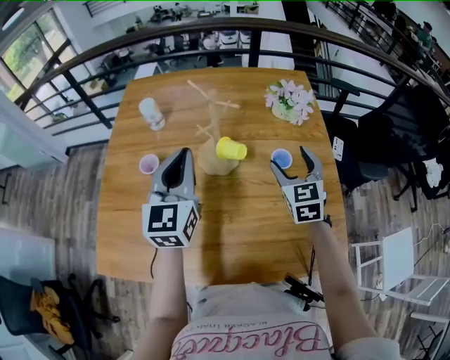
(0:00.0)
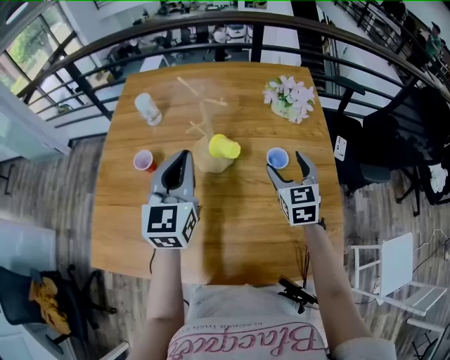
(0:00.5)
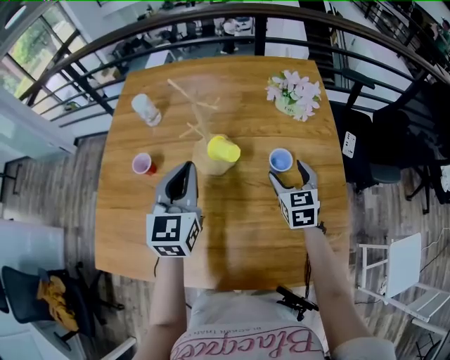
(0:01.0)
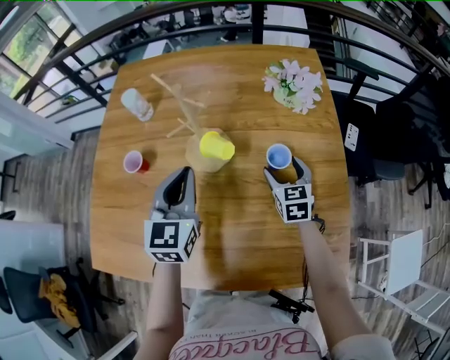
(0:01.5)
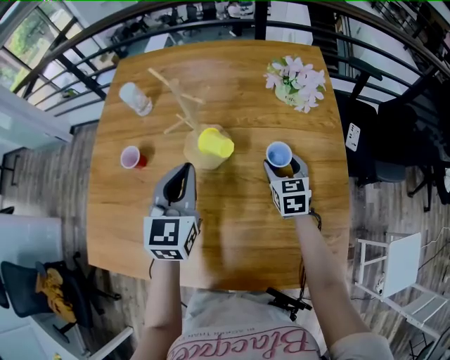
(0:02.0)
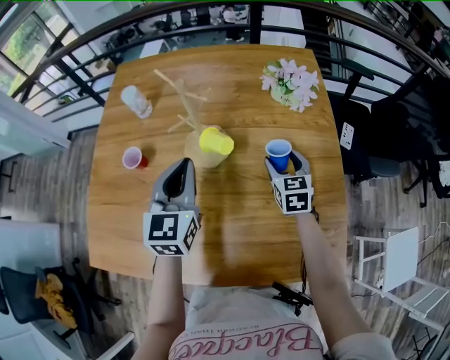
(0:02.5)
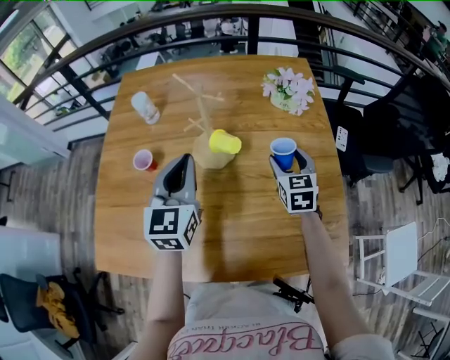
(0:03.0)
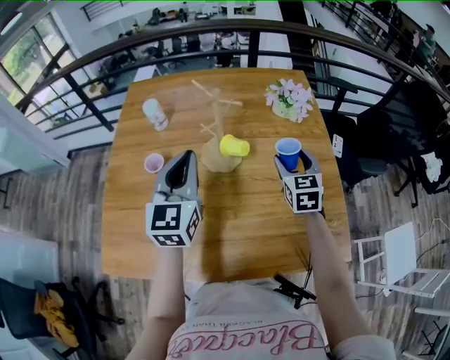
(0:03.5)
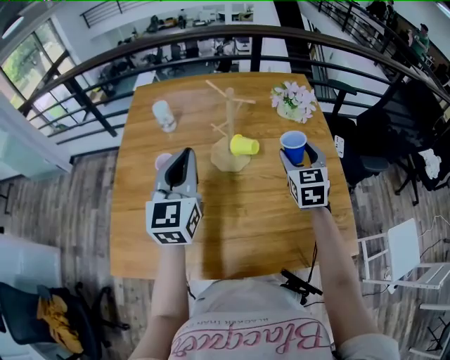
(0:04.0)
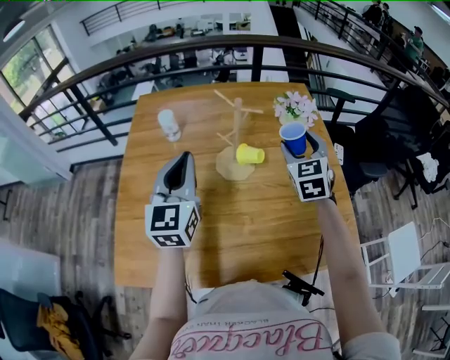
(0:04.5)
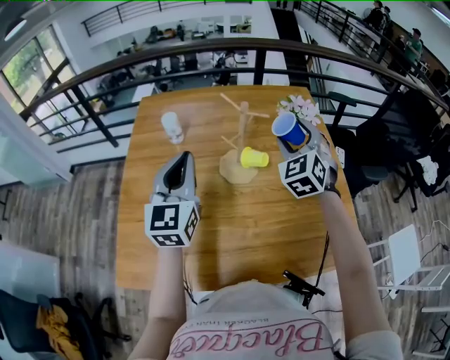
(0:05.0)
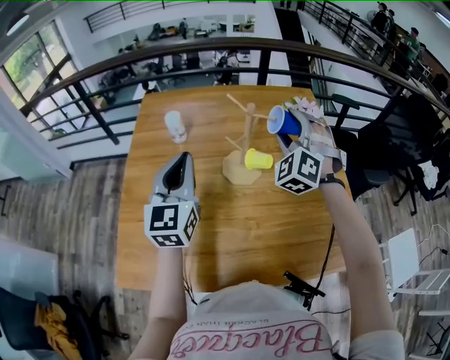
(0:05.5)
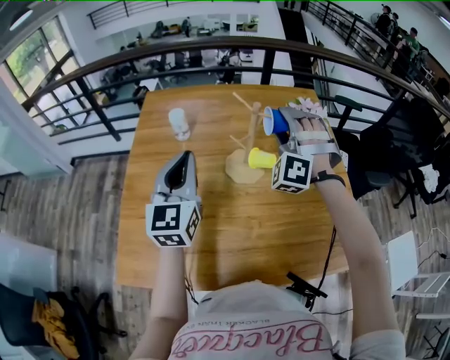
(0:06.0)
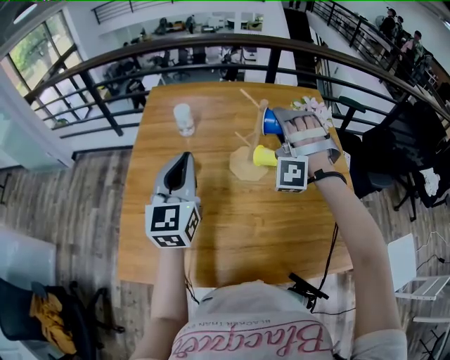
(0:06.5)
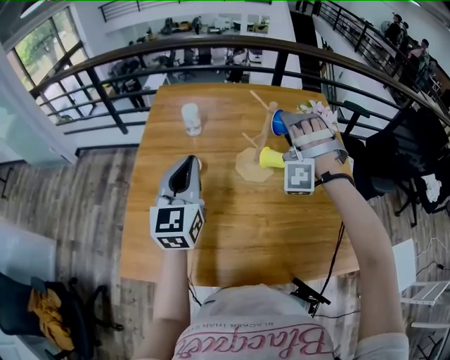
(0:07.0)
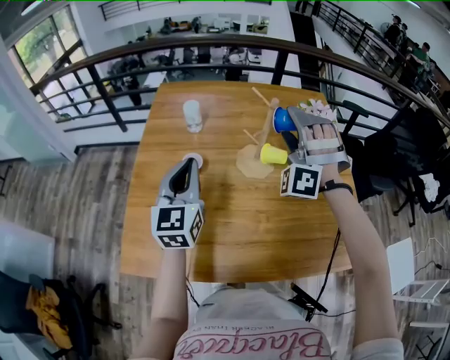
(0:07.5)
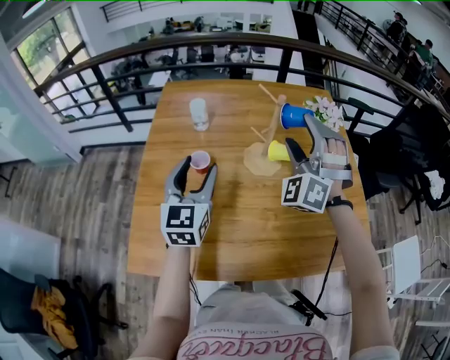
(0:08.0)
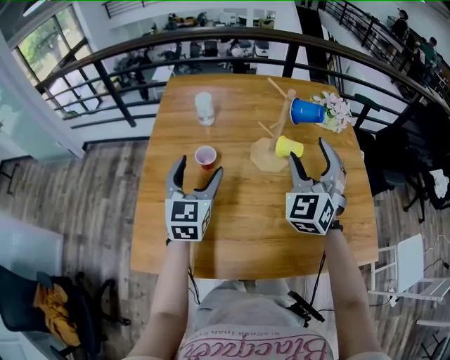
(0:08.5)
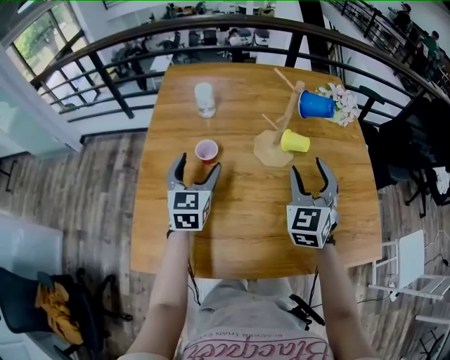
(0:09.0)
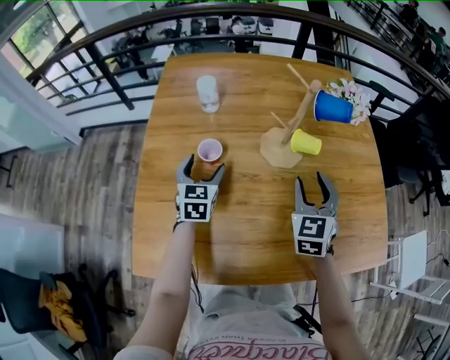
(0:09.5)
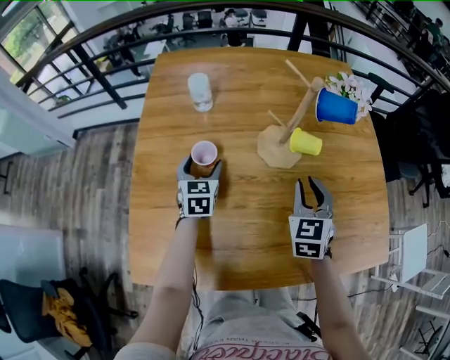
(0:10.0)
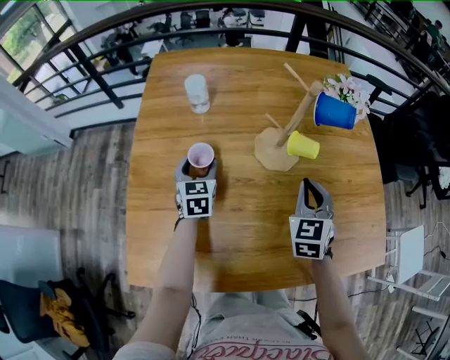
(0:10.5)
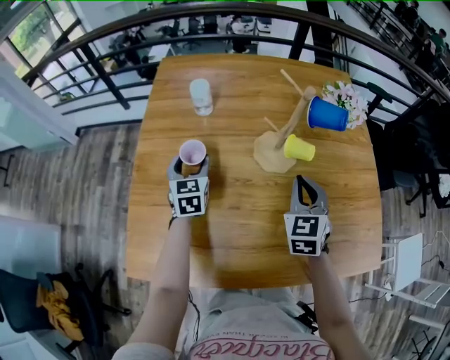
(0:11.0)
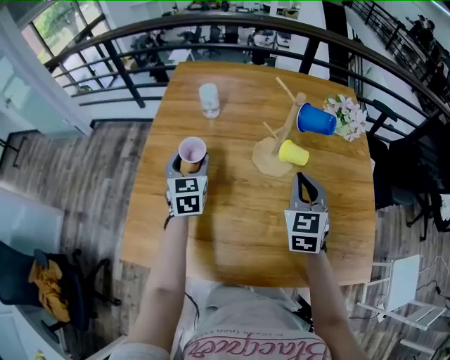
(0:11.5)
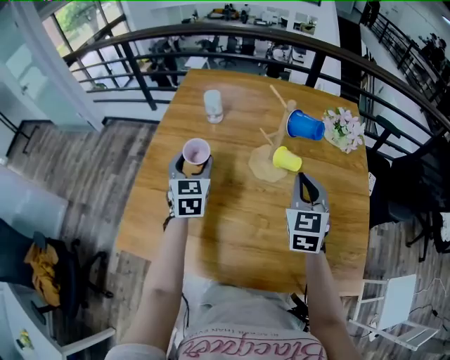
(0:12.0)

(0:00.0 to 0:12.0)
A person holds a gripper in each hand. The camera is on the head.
0:00.0 - 0:02.0: The left gripper shifts about 10 cm downward and to the right; the right gripper moves downward, some 15 cm.
0:02.0 - 0:04.0: The left gripper heads upward and to the left, covering some 15 cm. The right gripper travels upward by about 20 cm.
0:04.0 - 0:06.0: The left gripper heads to the left, covering about 5 cm; the right gripper moves to the left and upward, about 15 cm, and twists some 80 degrees counterclockwise, seen from behind.
0:06.0 - 0:08.0: The right gripper moves backward, about 10 cm. The left gripper shifts roughly 5 cm downward, and opens.
0:08.0 - 0:10.0: The right gripper goes about 20 cm downward, rolls clockwise, seen from behind, by roughly 60 degrees, and closes its fingers; the left gripper travels downward and forward by roughly 25 cm, and rotates approximately 20 degrees.
0:10.0 - 0:12.0: The left gripper moves upward and backward, approximately 15 cm, while the right gripper is displaced upward by roughly 10 cm.

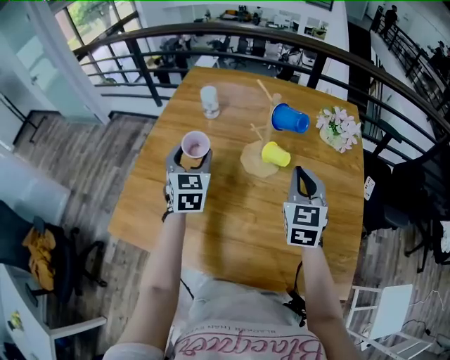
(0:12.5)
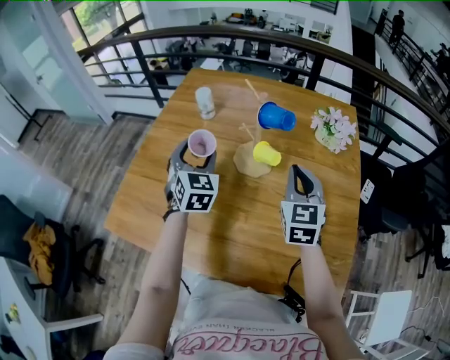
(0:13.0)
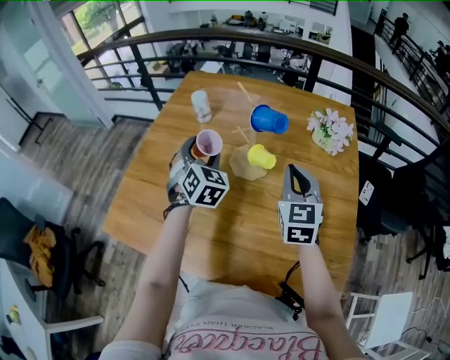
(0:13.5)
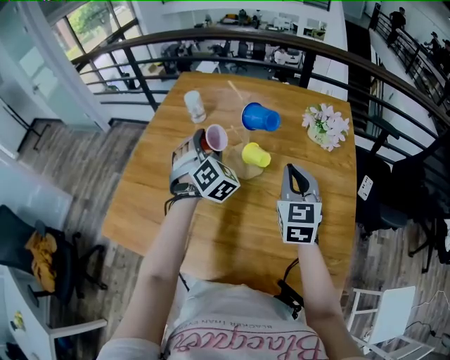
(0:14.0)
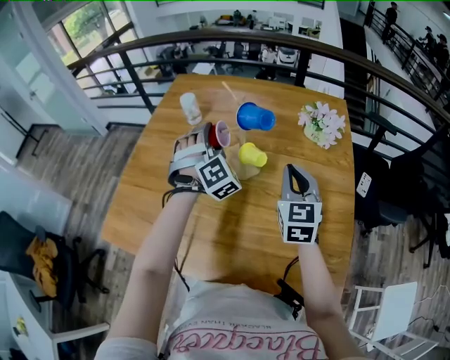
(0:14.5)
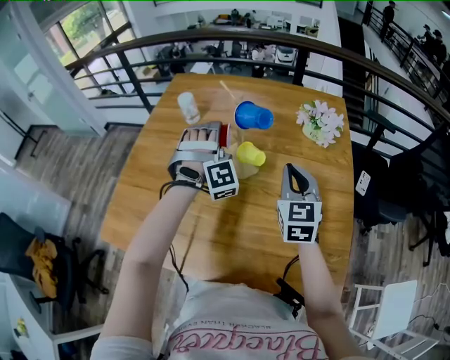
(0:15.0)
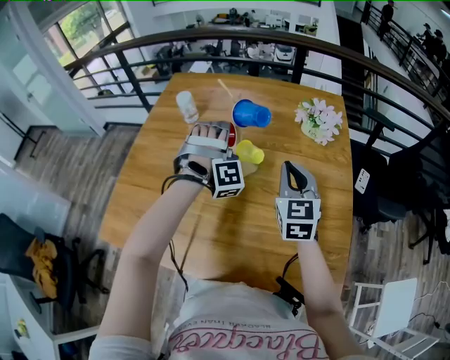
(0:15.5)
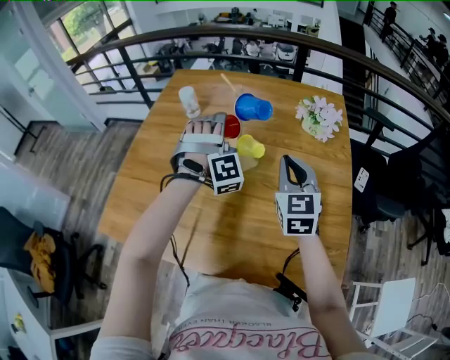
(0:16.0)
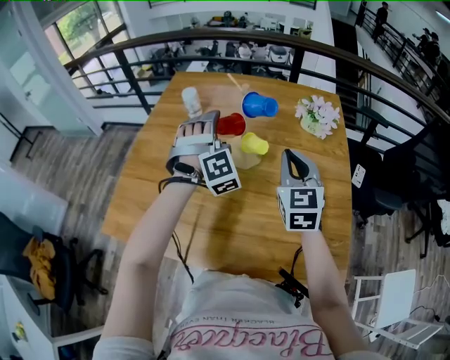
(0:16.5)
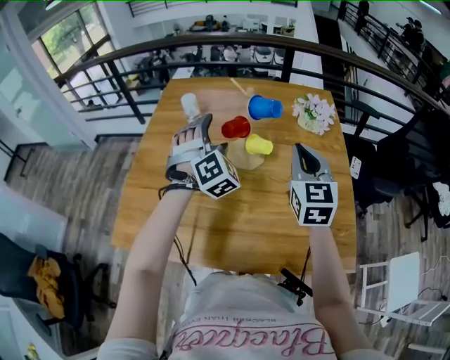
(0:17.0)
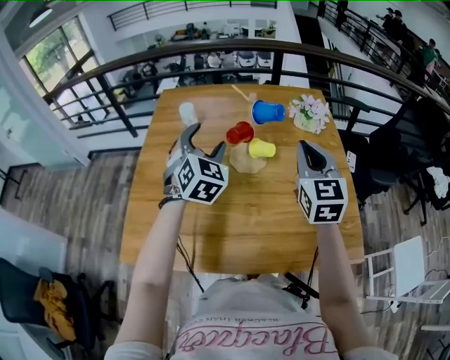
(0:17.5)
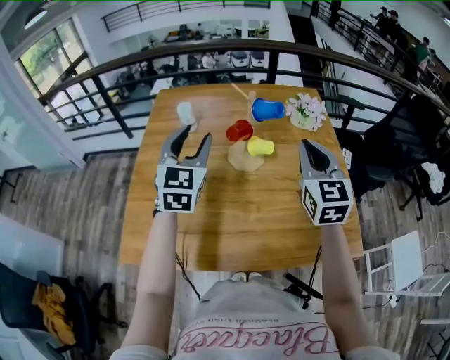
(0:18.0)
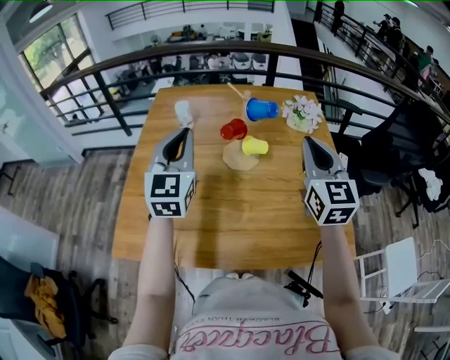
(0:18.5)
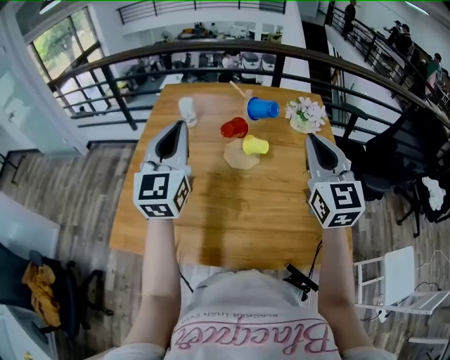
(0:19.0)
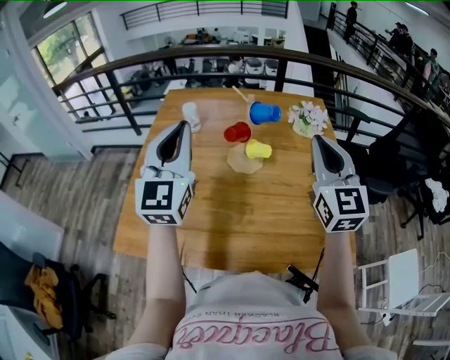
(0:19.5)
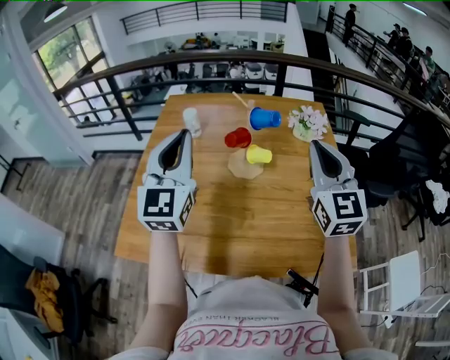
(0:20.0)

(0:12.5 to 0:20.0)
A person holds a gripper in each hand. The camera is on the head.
0:12.5 - 0:14.5: The left gripper travels to the right by approximately 15 cm, and rotates around the line of its fingers by roughly 60 degrees, clockwise from behind, while the right gripper goes some 5 cm to the right.
0:14.5 - 0:16.5: The right gripper moves roughly 5 cm.
0:16.5 - 0:18.0: The right gripper heads upward, covering roughly 5 cm. Meanwhile the left gripper heads upward, to the left and backward, covering about 15 cm, rotates around the line of its fingers by approximately 60 degrees, counterclockwise from behind, and closes up.
0:18.0 - 0:20.0: The left gripper goes approximately 10 cm upward and backward, and closes up. The right gripper heads upward, covering approximately 5 cm.

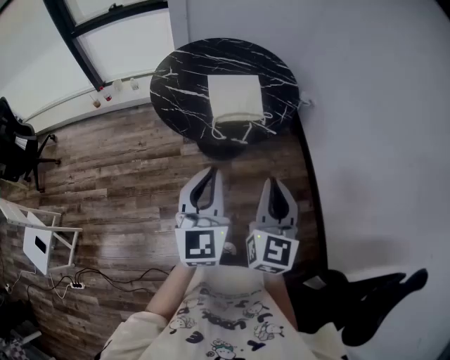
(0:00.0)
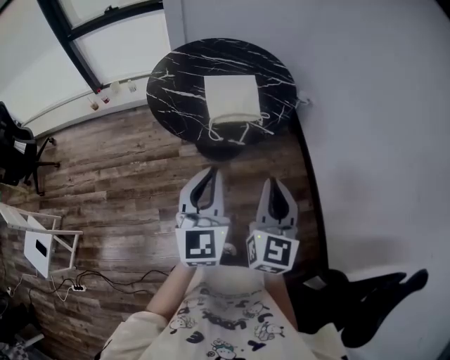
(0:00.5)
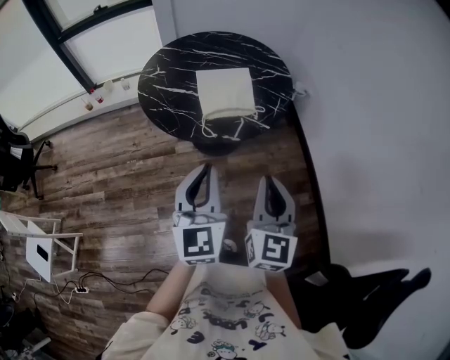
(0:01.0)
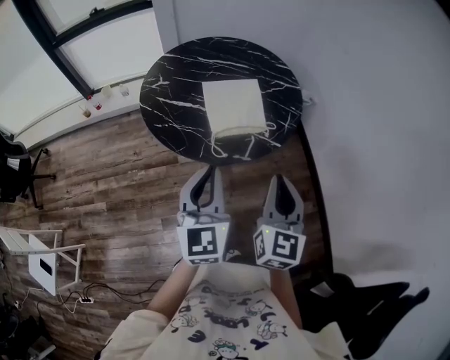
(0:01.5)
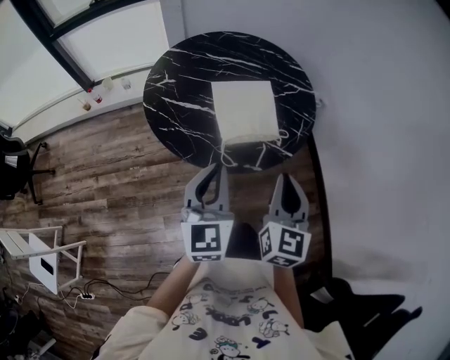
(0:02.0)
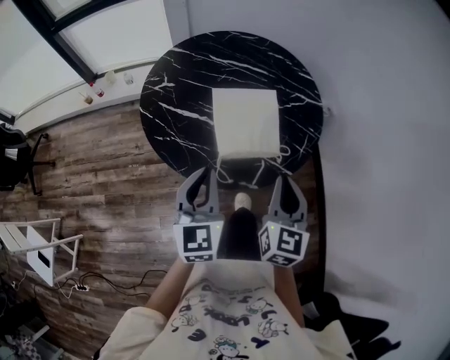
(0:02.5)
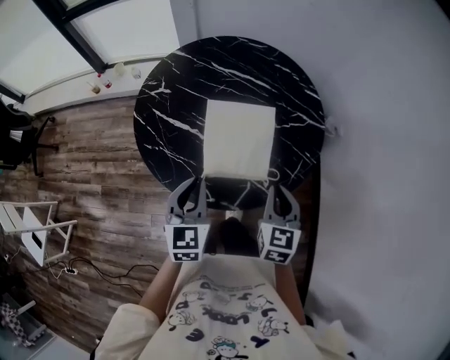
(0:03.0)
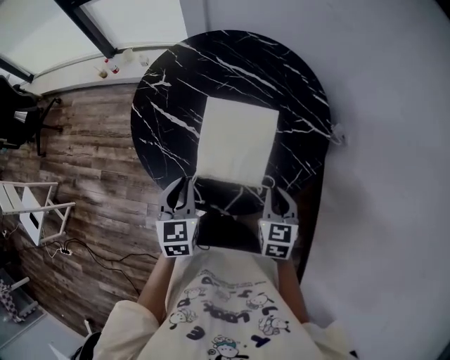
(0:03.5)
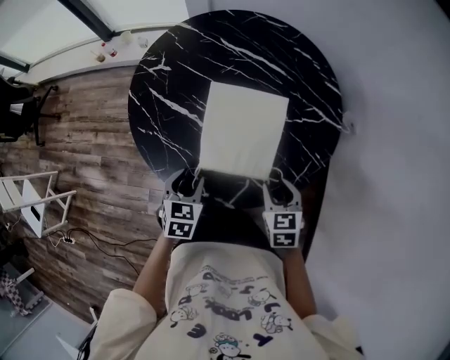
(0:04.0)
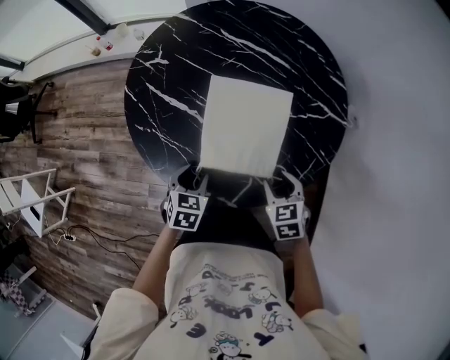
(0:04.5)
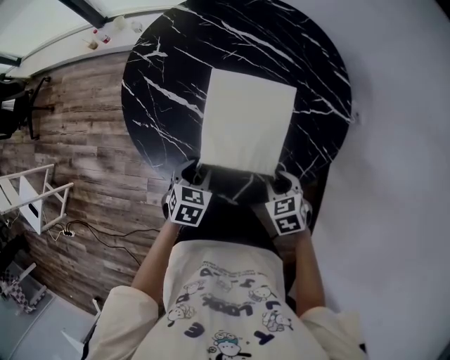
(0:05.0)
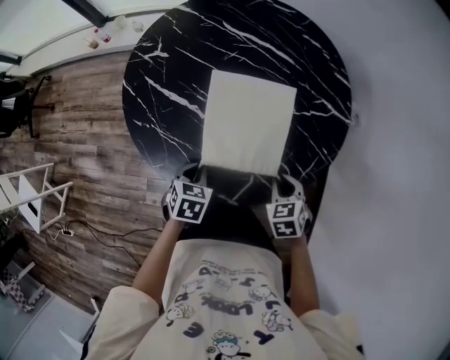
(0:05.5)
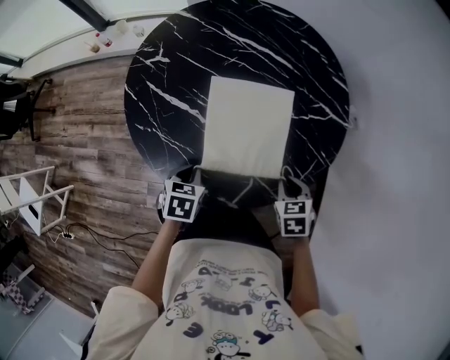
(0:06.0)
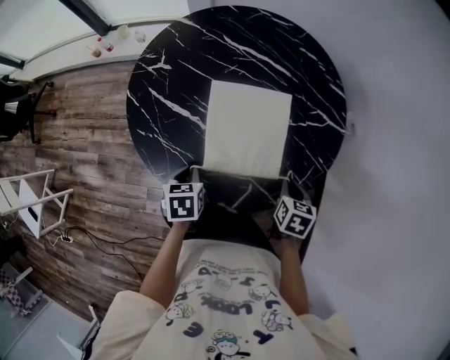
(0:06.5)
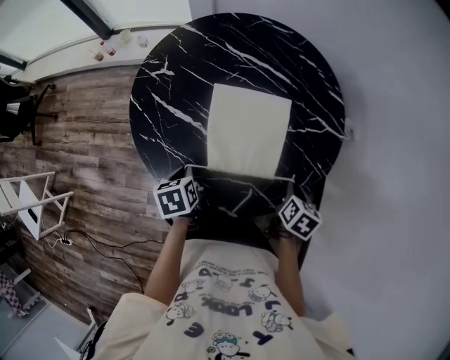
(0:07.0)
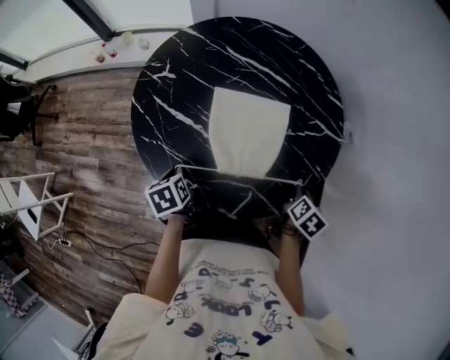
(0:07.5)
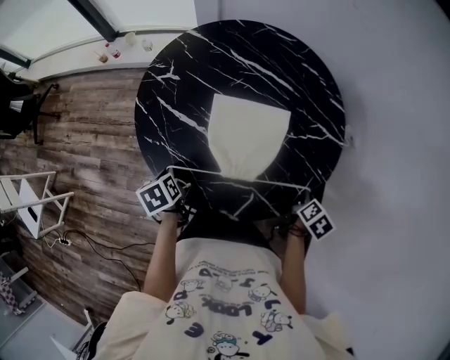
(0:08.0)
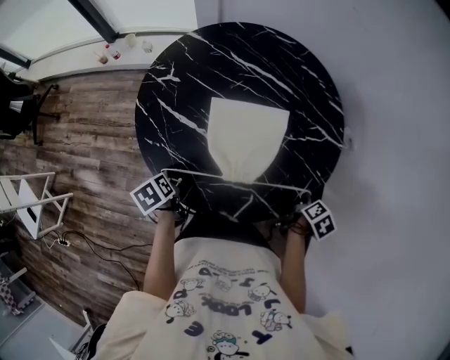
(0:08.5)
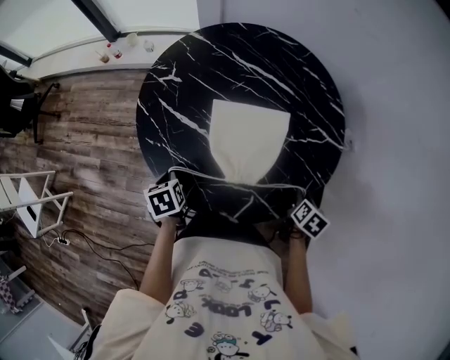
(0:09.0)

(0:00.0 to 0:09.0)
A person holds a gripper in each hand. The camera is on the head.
0:00.0 - 0:02.0: Both grippers move forward, roughly 20 cm.
0:02.0 - 0:04.5: The right gripper shifts about 35 cm downward, forward and to the right, tilts its fingers approximately 40 degrees downward, and opens. The left gripper is displaced downward and forward by approximately 30 cm, points its fingers roughly 50 degrees further downward, and opens up.
0:04.5 - 0:07.0: The left gripper is displaced to the left by some 5 cm, rotates some 40 degrees, and closes. Meanwhile the right gripper is displaced to the right by some 10 cm, rotates around the line of its fingers by approximately 50 degrees, clockwise from behind, and closes its fingers.
0:07.0 - 0:09.0: The left gripper heads to the left, covering roughly 5 cm.
